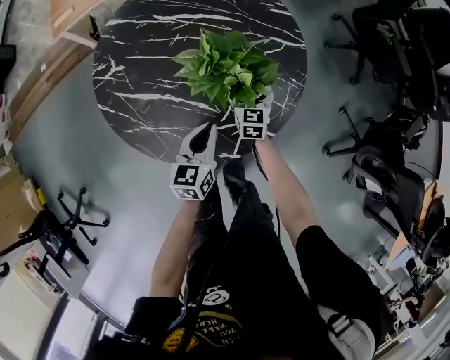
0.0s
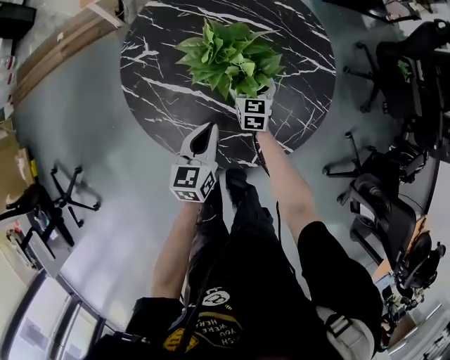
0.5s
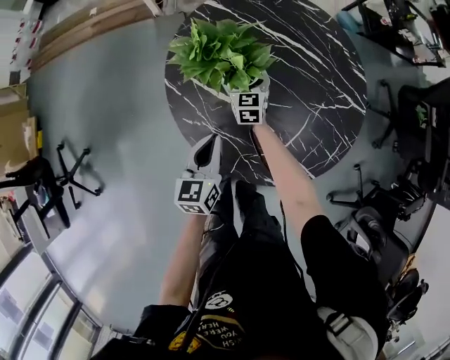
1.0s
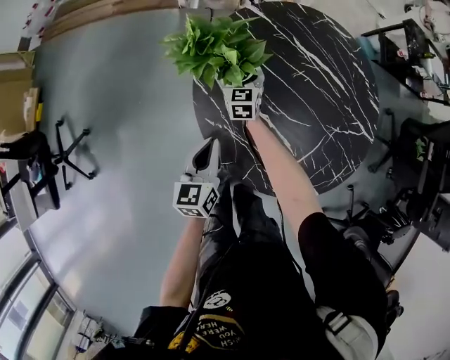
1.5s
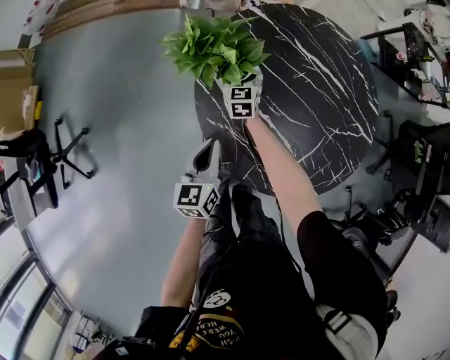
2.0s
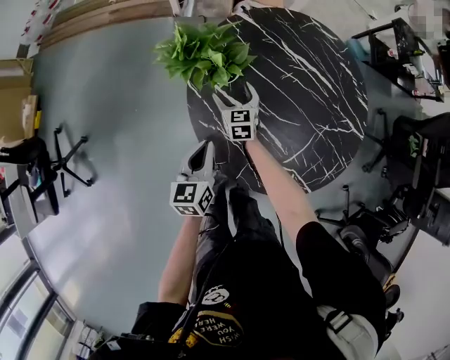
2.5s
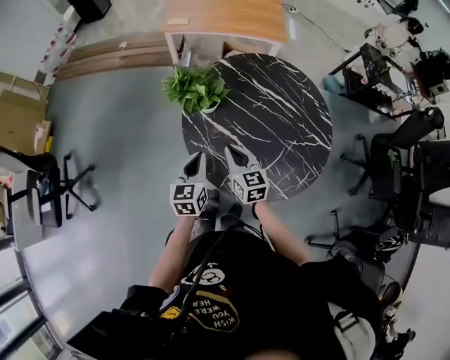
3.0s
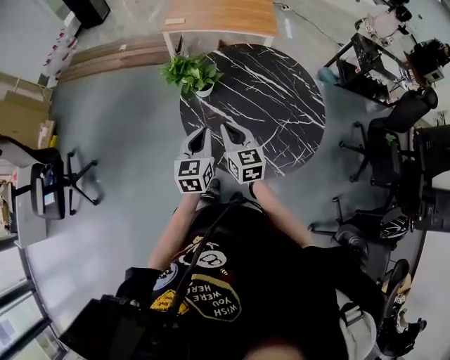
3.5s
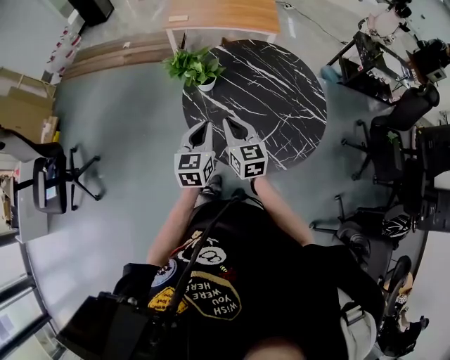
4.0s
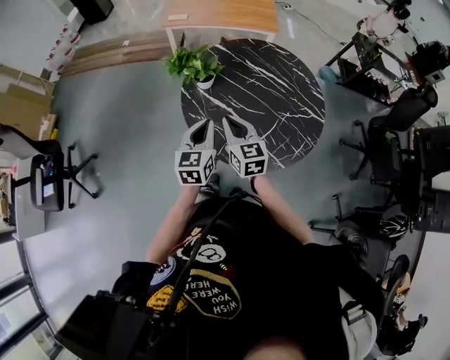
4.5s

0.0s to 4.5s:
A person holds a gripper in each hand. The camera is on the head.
0.0s to 2.0s: The left gripper moves approximately 30 cm, and rotates some 30 degrees. The right gripper shifts by roughly 50 cm, and changes its angle by approximately 30 degrees.
2.0s to 4.5s: The left gripper travels upward and backward by some 25 cm. The right gripper goes roughly 50 cm backward and upward, and closes.

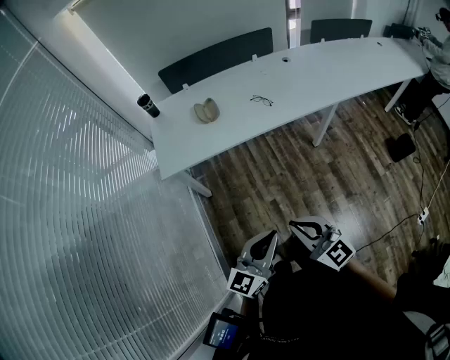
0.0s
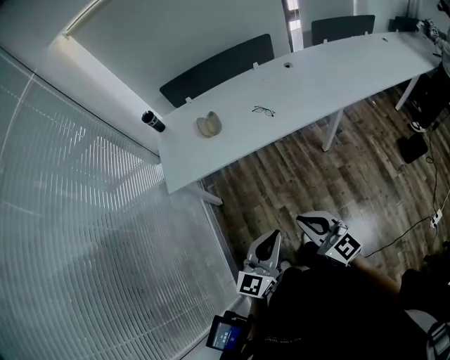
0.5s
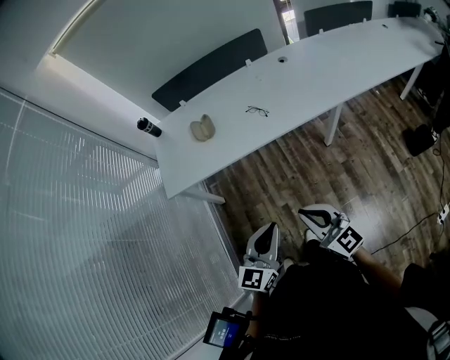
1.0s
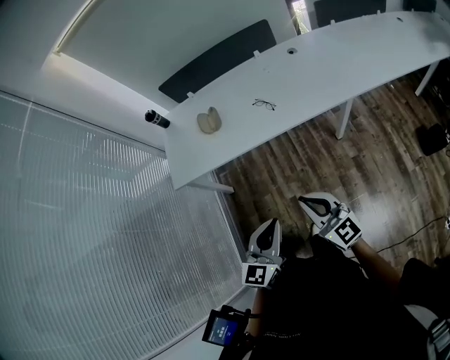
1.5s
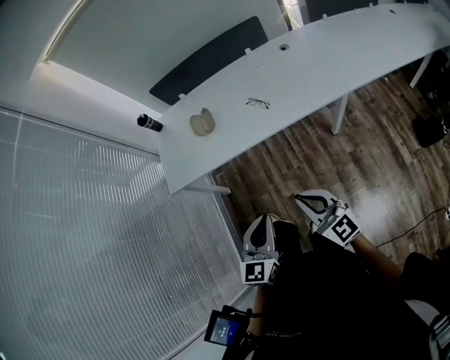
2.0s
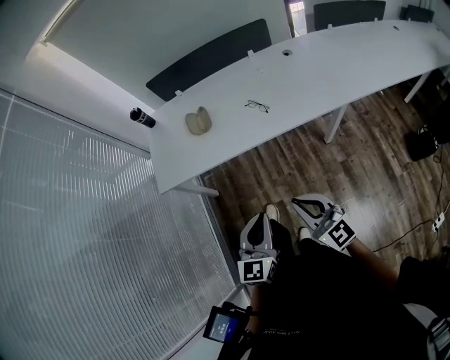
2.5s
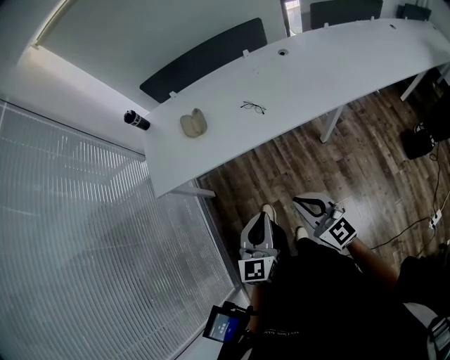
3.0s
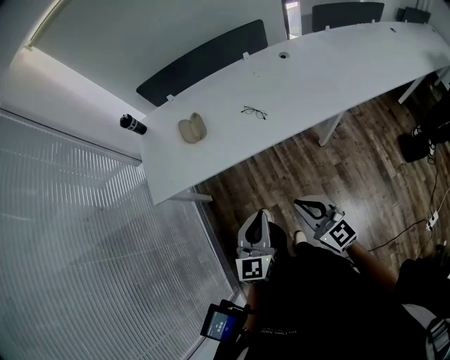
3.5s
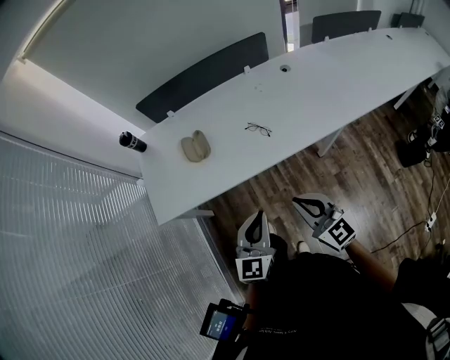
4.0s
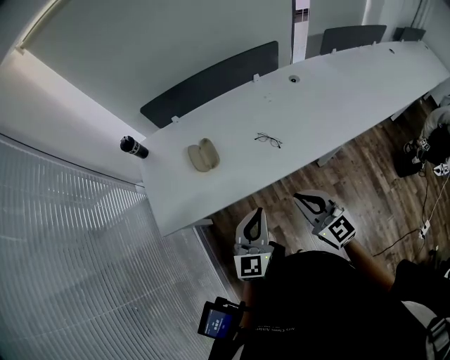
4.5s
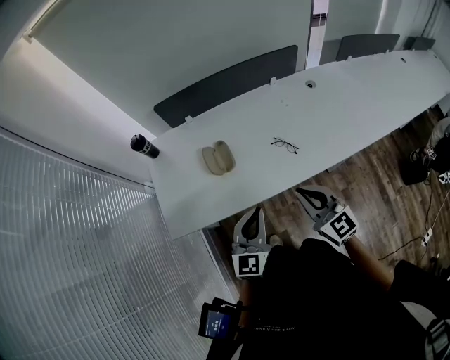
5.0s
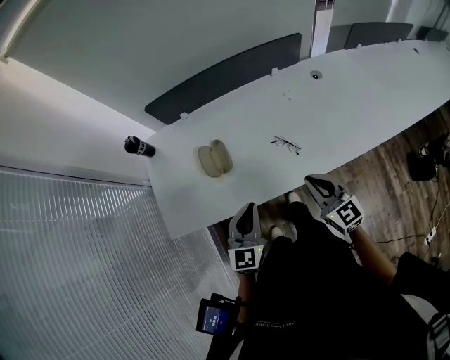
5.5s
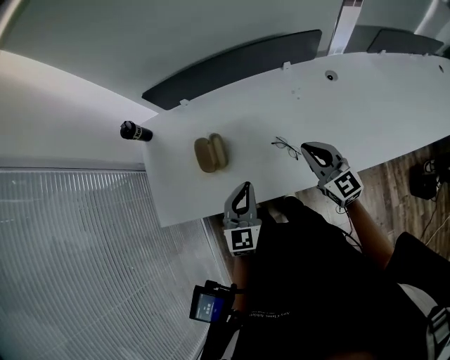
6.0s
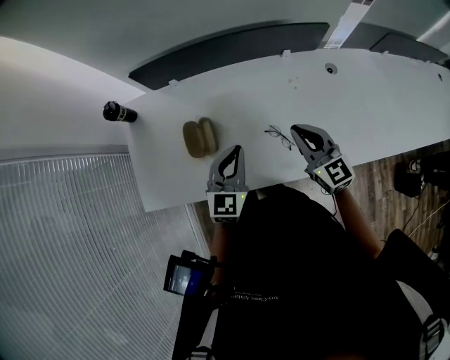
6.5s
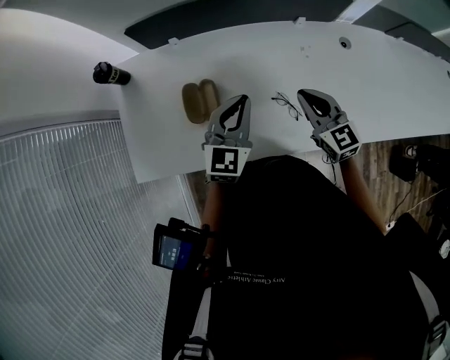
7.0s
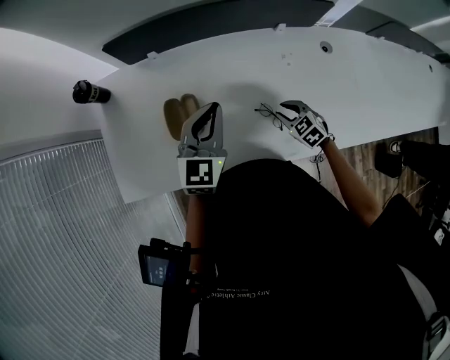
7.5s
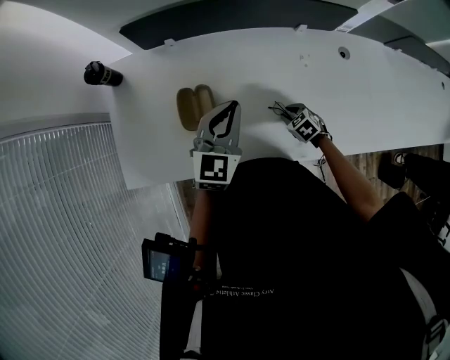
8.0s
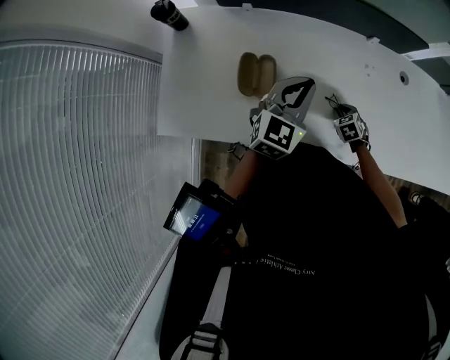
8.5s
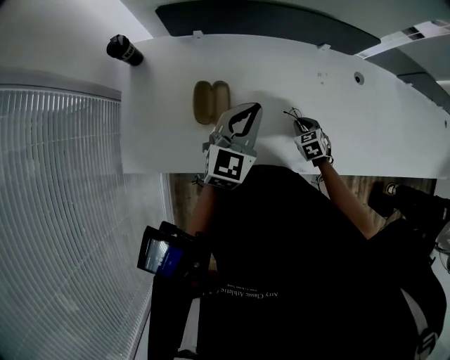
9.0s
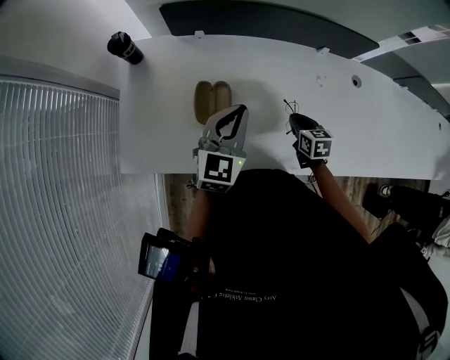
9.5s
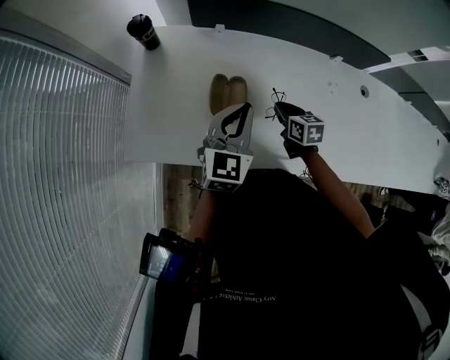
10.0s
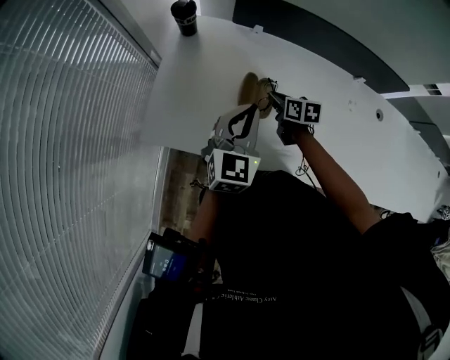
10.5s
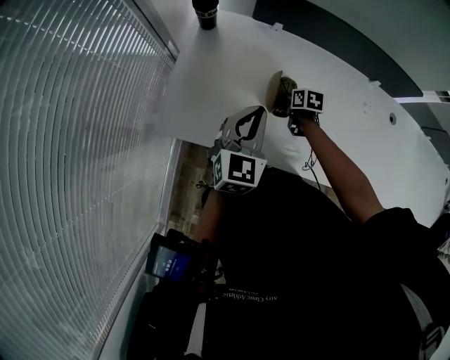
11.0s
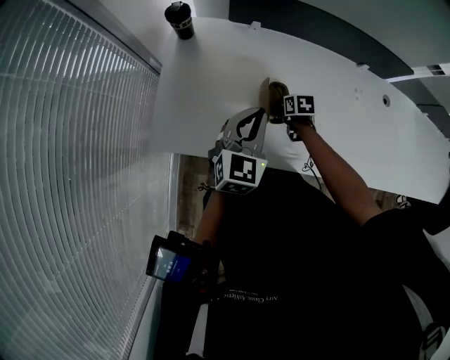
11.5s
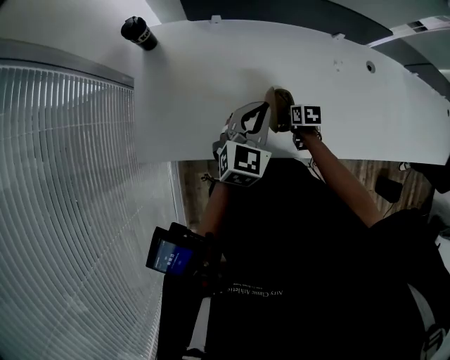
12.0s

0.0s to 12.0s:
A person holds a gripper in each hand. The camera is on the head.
0.0s to 2.0s: Both grippers travel together to the right and forward, some 20 cm. The left gripper swivels approximately 30 degrees.
2.0s to 4.0s: The two grippers go about 15 cm forward.
4.0s to 6.0s: The grippers both shift forward by about 30 cm.
6.0s to 8.0s: The left gripper shifts about 15 cm forward, while the right gripper travels downward by approximately 30 cm, tilts its fingers roughly 60 degrees downward, and opens up.
8.0s to 10.0s: The right gripper moves to the left and upward, about 20 cm, and changes its angle by some 40 degrees. The left gripper is displaced to the left by some 10 cm.
10.0s to 12.0s: The left gripper reaches approximately 10 cm to the left, then returns. The right gripper heads downward and backward, covering about 15 cm, goes to the left and returns, roughly 10 cm each way, and changes its angle by approximately 30 degrees.

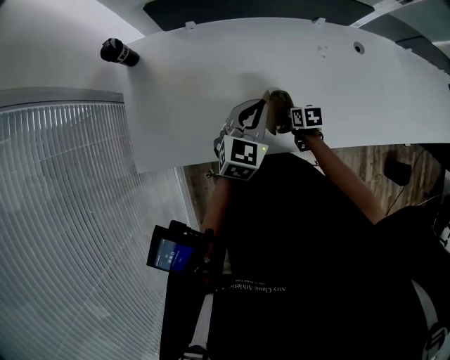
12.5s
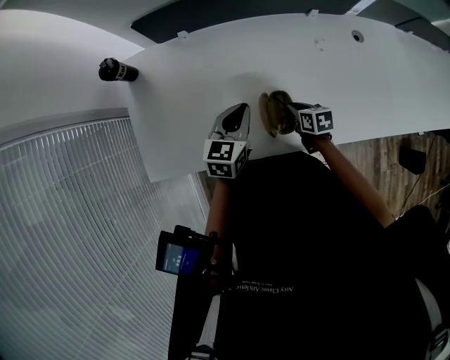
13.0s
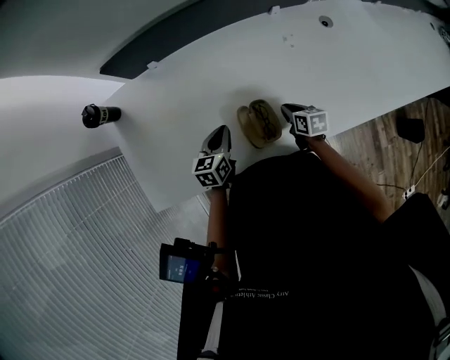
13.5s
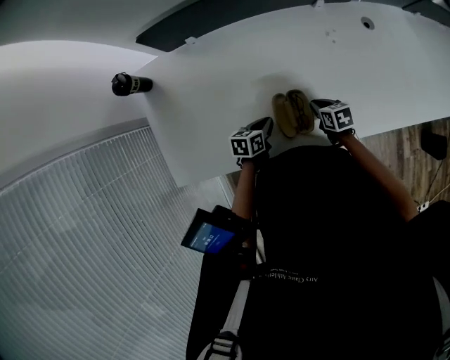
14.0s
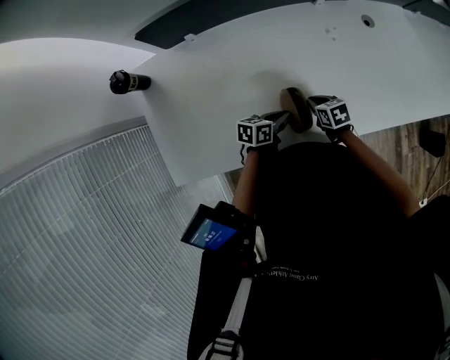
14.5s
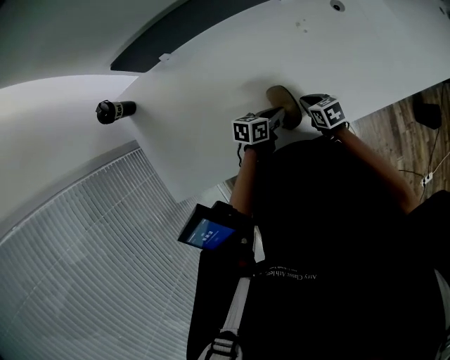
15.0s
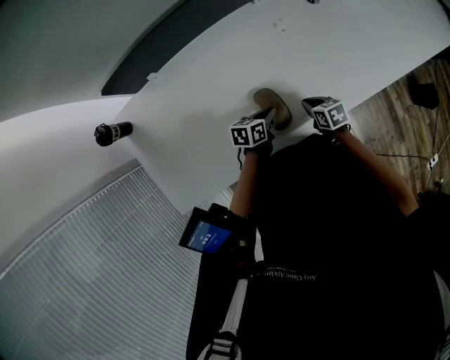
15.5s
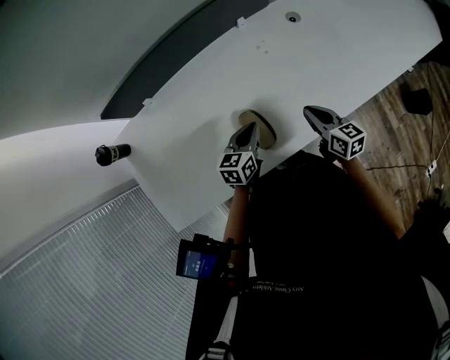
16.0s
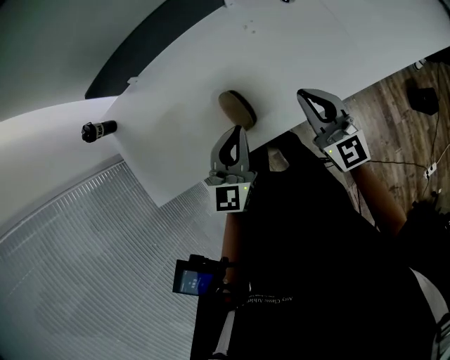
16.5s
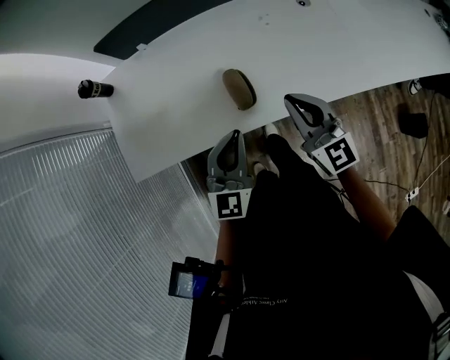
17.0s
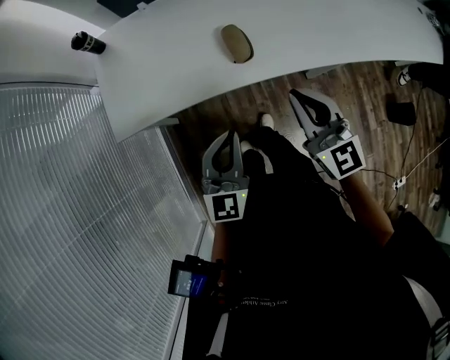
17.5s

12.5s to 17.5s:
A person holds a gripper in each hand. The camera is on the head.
12.5s to 15.0s: The left gripper heads downward and to the right, covering about 20 cm, and swivels some 60 degrees.
15.0s to 17.5s: The left gripper is displaced backward and upward by some 40 cm, and rotates some 70 degrees, while the right gripper moves upward and backward, approximately 40 cm, and points its fingers some 50 degrees further upward.

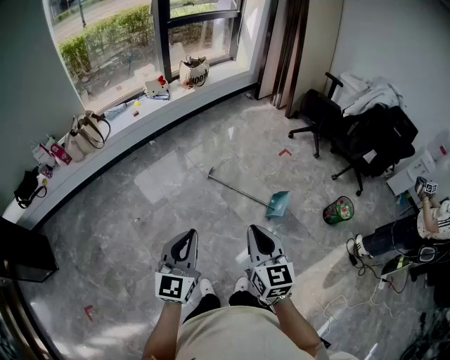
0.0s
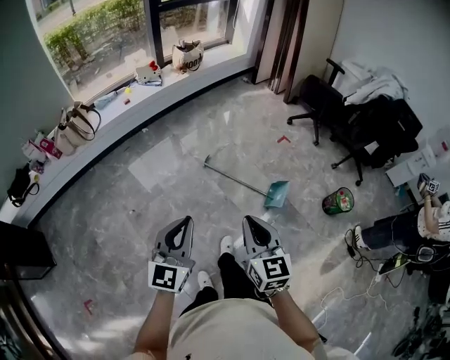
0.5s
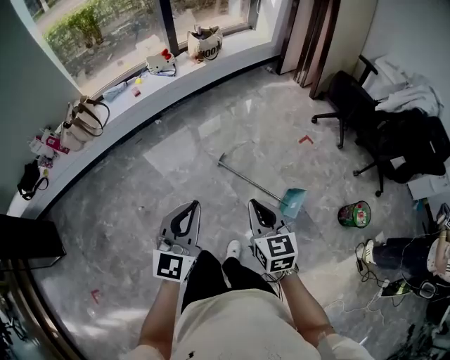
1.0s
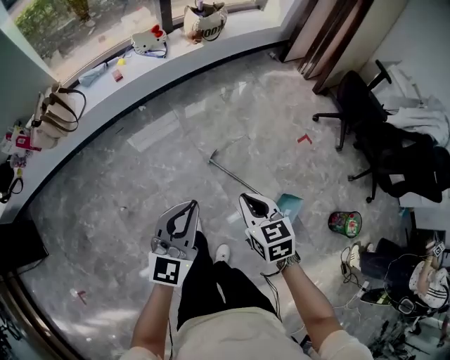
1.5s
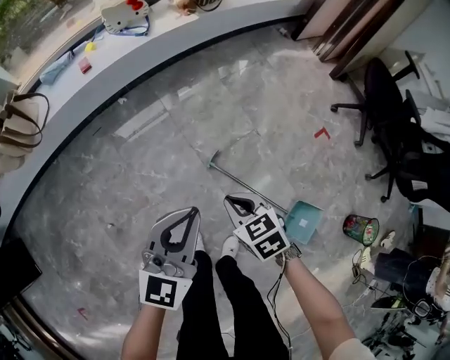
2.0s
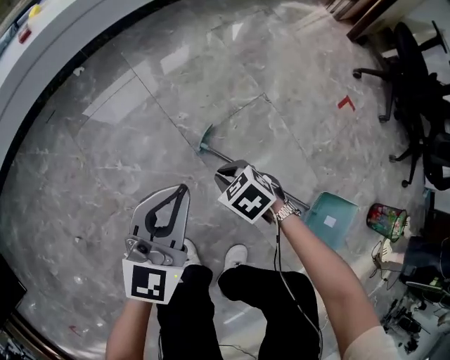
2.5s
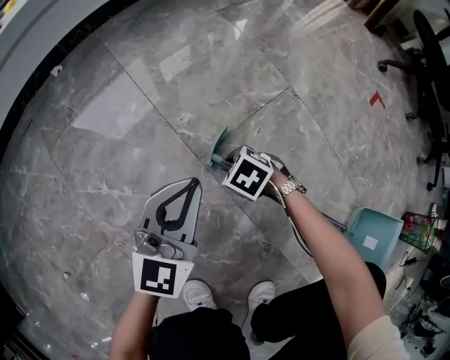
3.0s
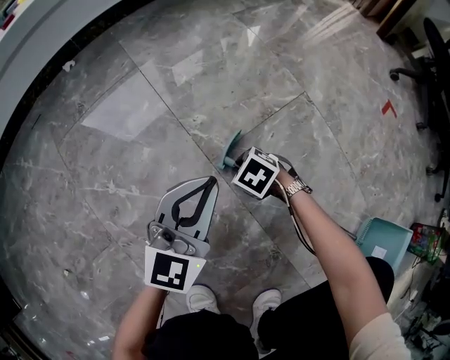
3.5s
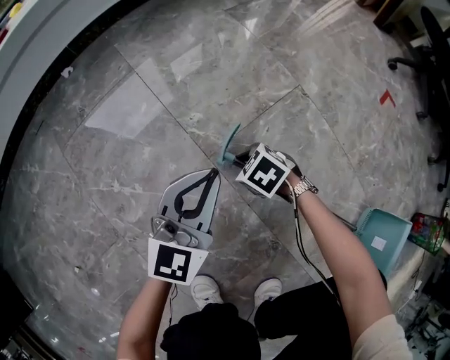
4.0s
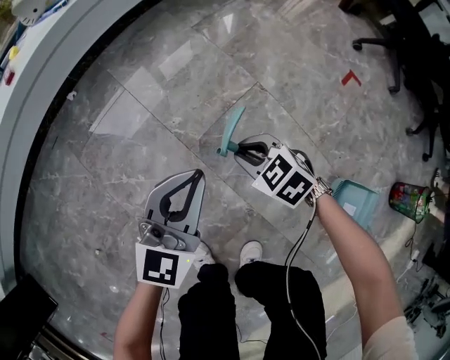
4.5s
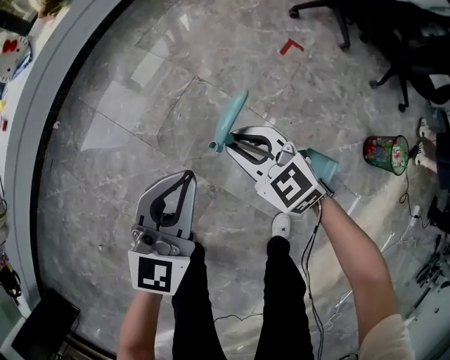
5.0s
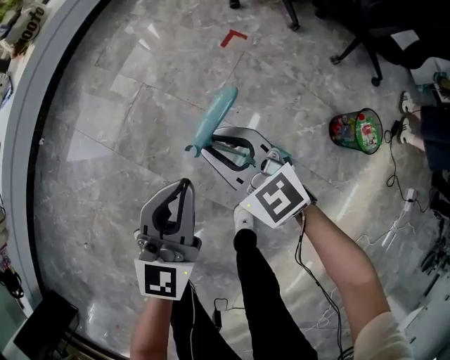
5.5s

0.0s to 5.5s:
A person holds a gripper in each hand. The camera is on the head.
0.0s to 2.0s: The pair of grippers is taken forward, about 60 cm. Both grippers move downward, approximately 40 cm. The right gripper points its fingers some 40 degrees further downward.
2.0s to 3.5s: Both grippers travel together downward, roughly 60 cm. The right gripper rotates about 30 degrees.
3.5s to 5.5s: The pair of grippers is taken roughly 50 cm. The right gripper moves upward, about 60 cm, and points its fingers about 50 degrees further upward.
